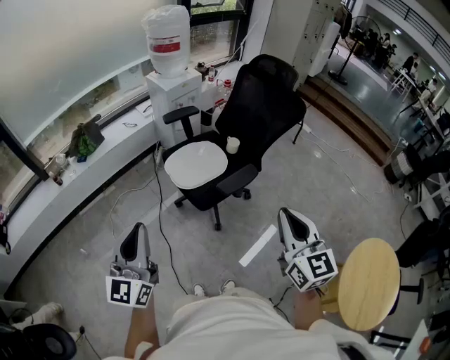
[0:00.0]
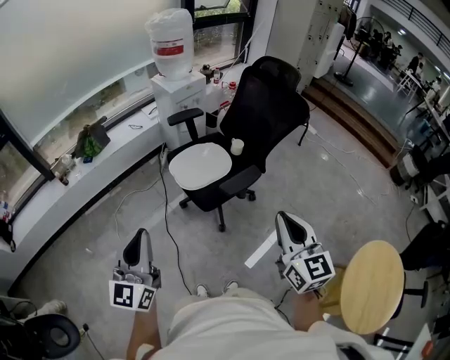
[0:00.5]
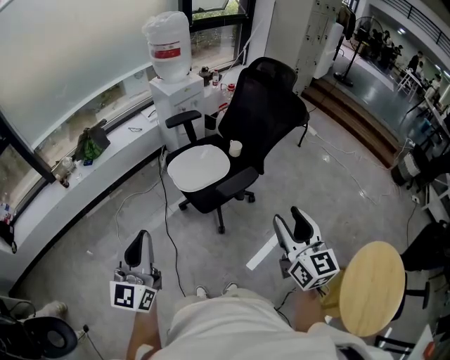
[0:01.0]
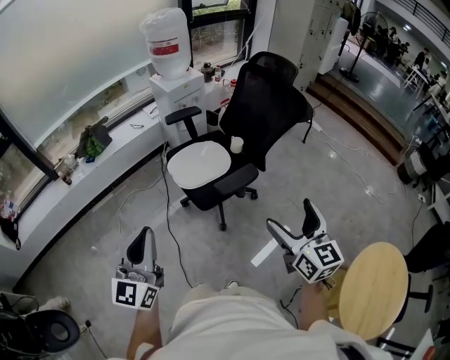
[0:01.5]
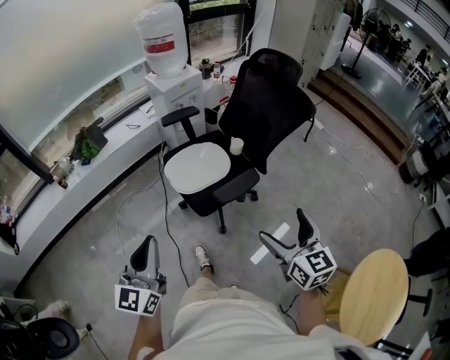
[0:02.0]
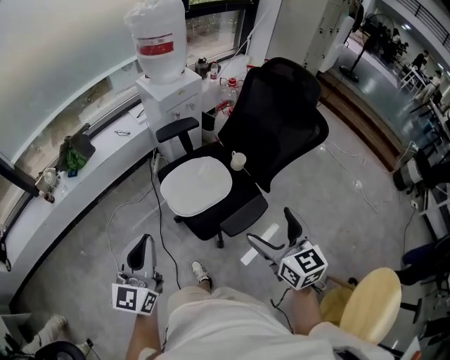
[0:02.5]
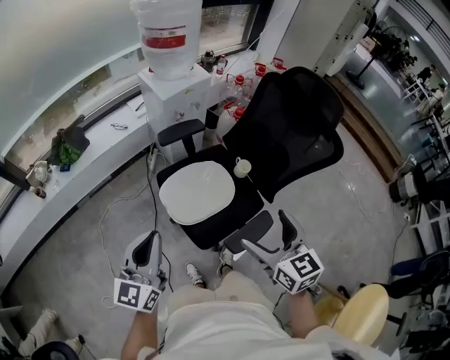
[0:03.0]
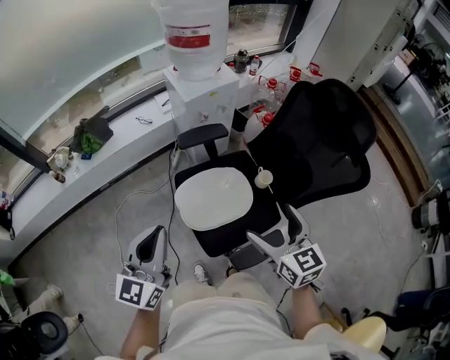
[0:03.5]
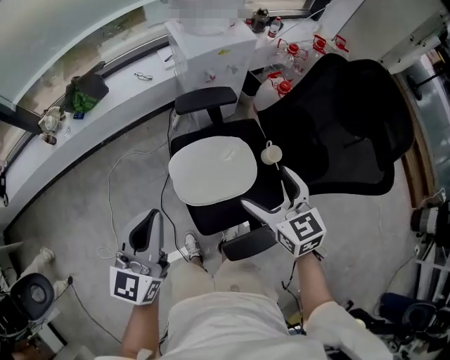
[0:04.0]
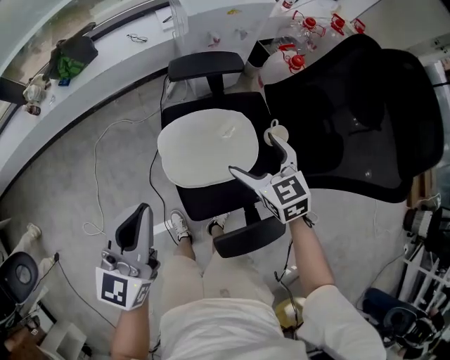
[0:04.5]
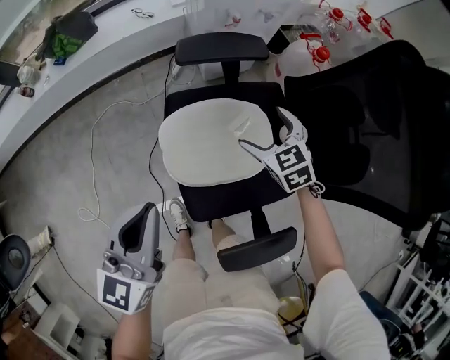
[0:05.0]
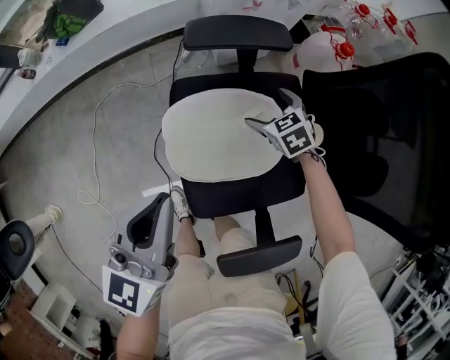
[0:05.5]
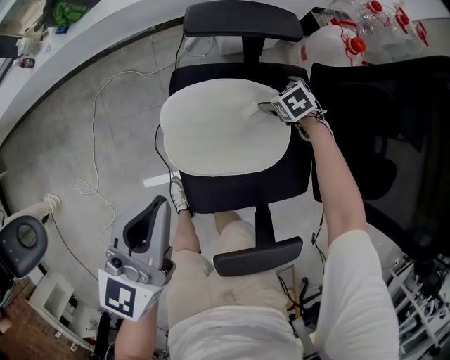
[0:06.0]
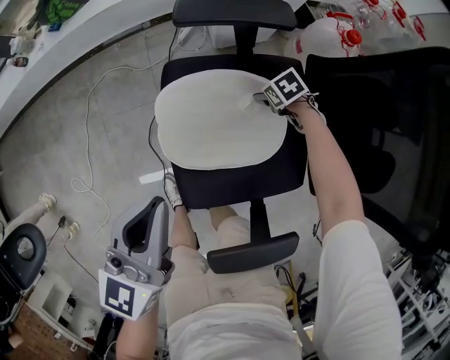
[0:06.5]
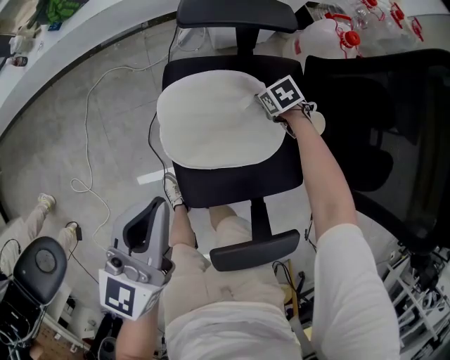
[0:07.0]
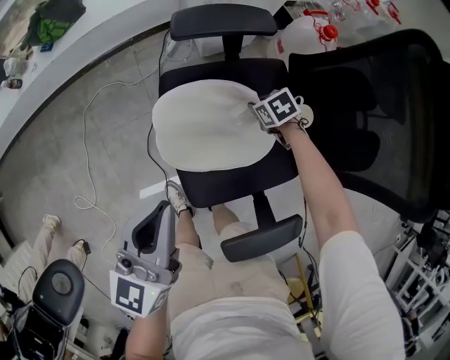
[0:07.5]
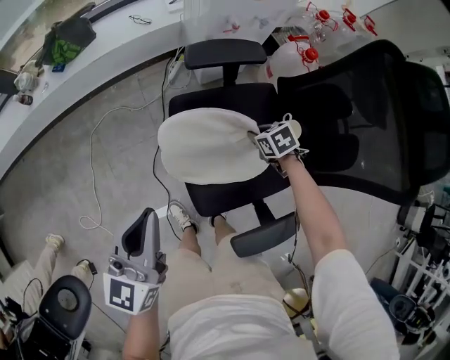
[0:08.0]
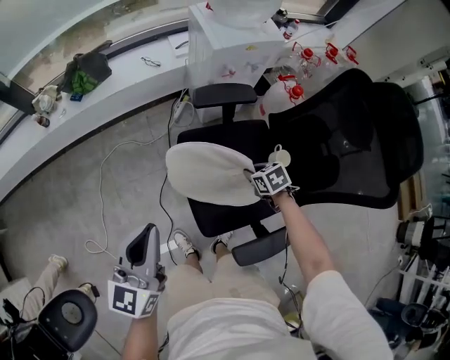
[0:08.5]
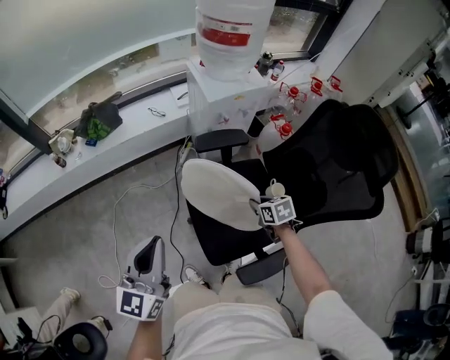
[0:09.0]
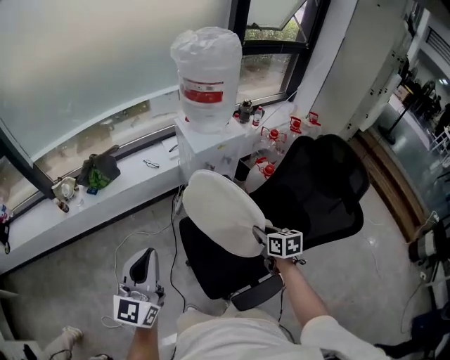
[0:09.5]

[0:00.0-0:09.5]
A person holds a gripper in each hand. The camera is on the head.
0:00.0 to 0:02.0: The left gripper shifts some 10 cm to the right; the right gripper heads downward, to the right and forward, covering approximately 10 cm, and opens.
0:02.0 to 0:04.0: The two grippers go roughly 40 cm forward. The right gripper swivels approximately 30 degrees.
0:04.0 to 0:05.5: The right gripper heads downward and forward, covering approximately 40 cm, and swivels about 30 degrees, while the left gripper is displaced downward by approximately 15 cm.
0:05.5 to 0:07.5: The right gripper heads downward, covering some 5 cm, changes its angle by approximately 20 degrees, and closes up.
0:07.5 to 0:09.5: The right gripper travels upward by approximately 40 cm, and tips its fingers upward by some 30 degrees. The left gripper moves upward and to the left, some 25 cm, and turns by approximately 20 degrees.

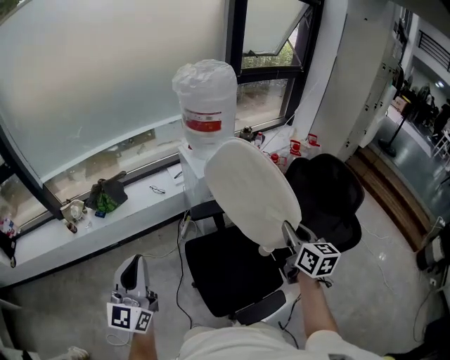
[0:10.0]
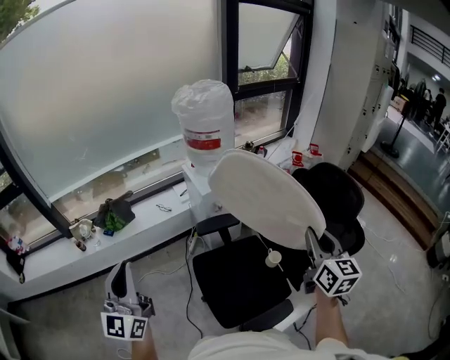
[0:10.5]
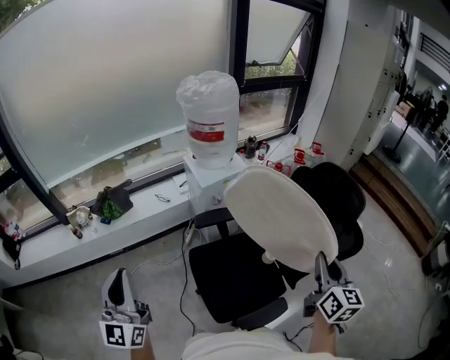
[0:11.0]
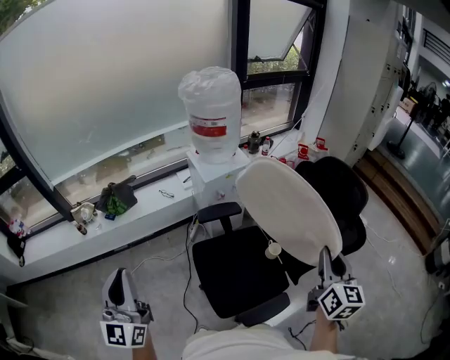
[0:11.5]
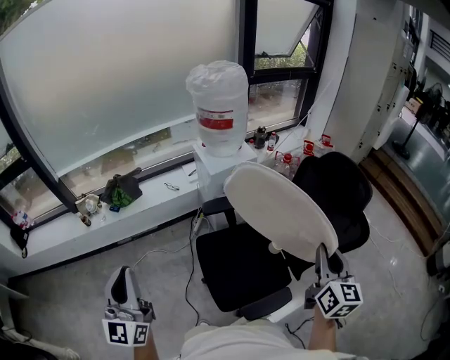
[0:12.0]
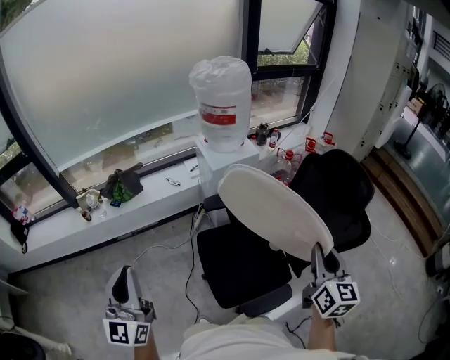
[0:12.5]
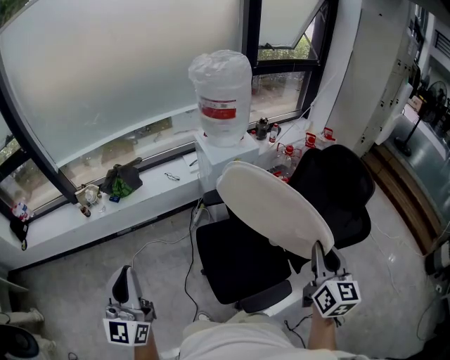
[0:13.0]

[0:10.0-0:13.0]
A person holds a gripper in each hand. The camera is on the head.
0:10.0 to 0:11.5: The right gripper is displaced backward, to the right and upward by some 15 cm; the left gripper travels backward by some 5 cm.
0:11.5 to 0:13.0: The grippers stay close to where they were, moving slightly.

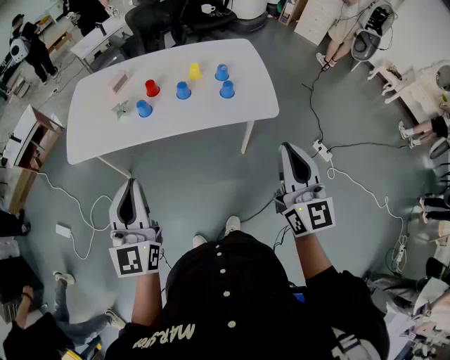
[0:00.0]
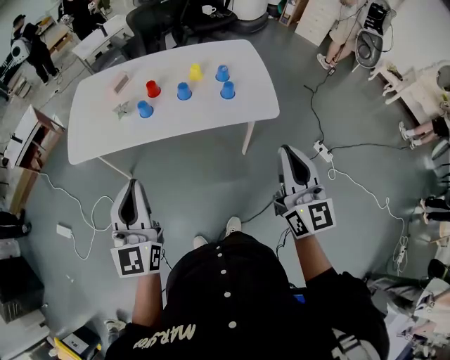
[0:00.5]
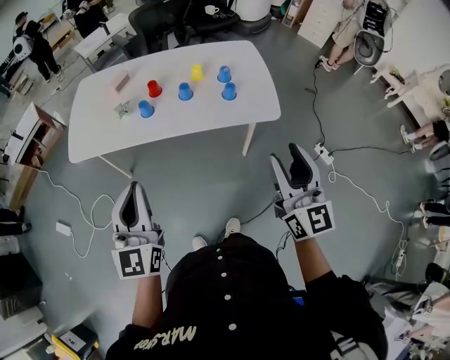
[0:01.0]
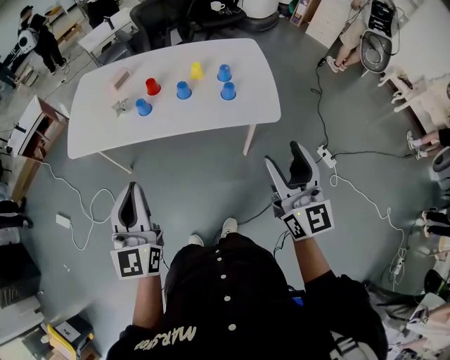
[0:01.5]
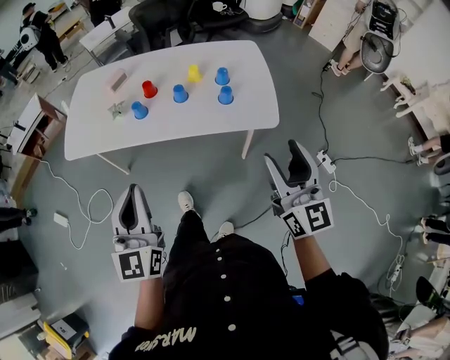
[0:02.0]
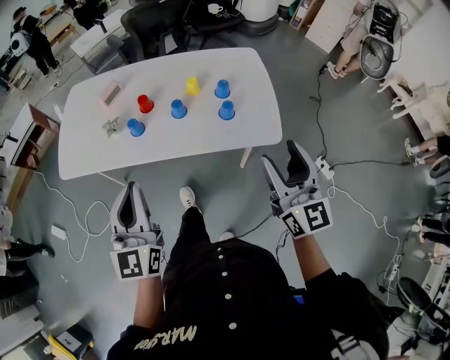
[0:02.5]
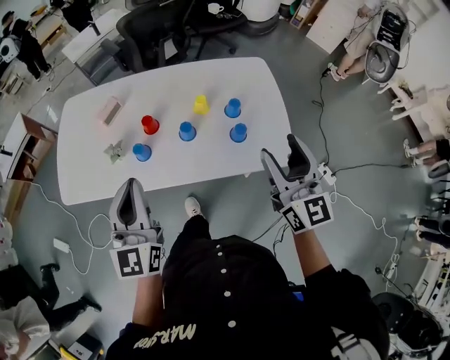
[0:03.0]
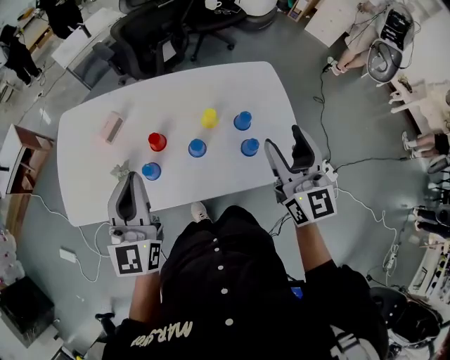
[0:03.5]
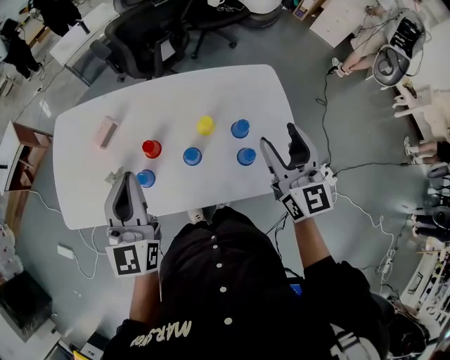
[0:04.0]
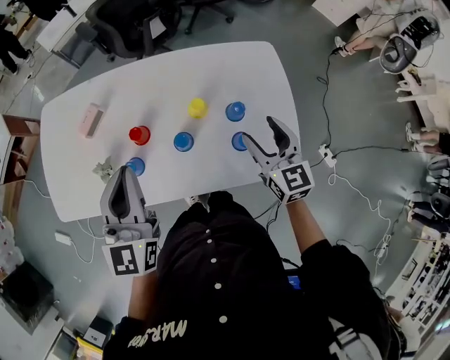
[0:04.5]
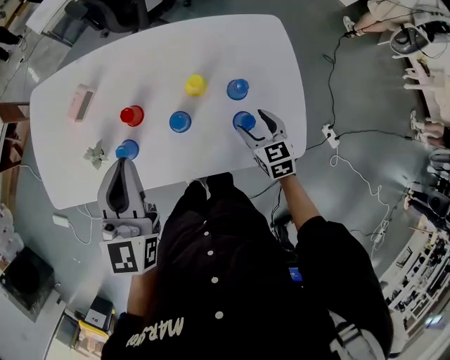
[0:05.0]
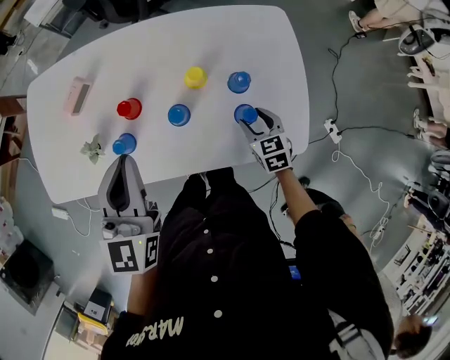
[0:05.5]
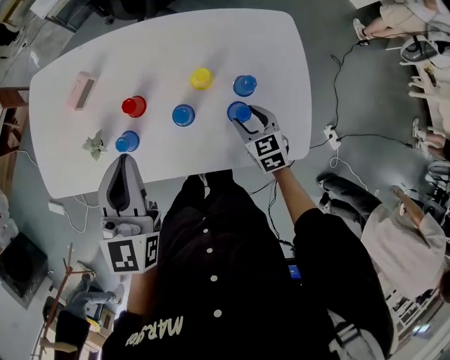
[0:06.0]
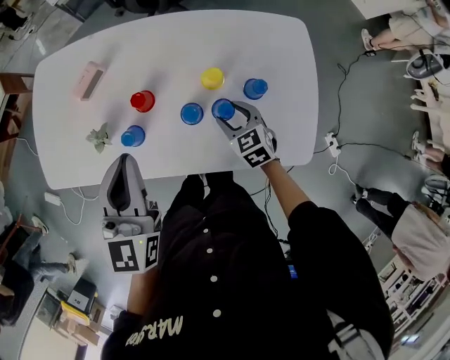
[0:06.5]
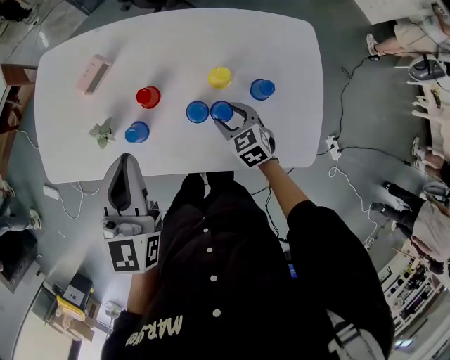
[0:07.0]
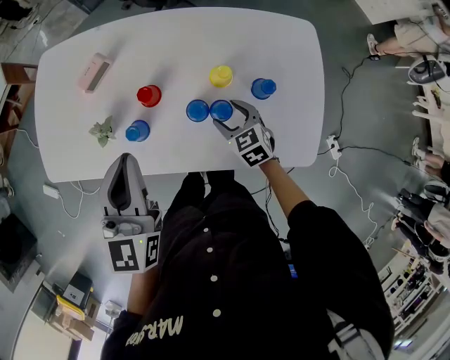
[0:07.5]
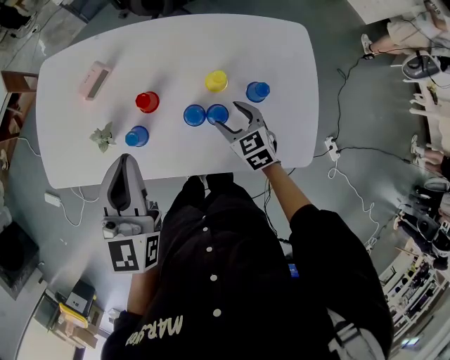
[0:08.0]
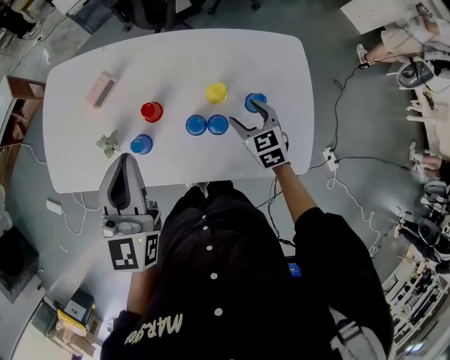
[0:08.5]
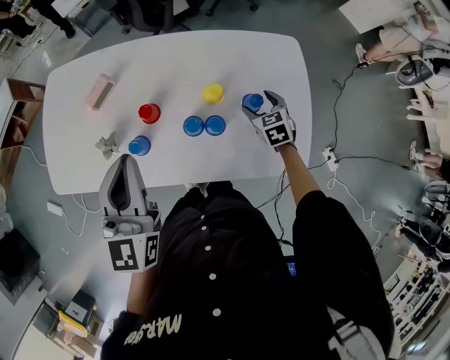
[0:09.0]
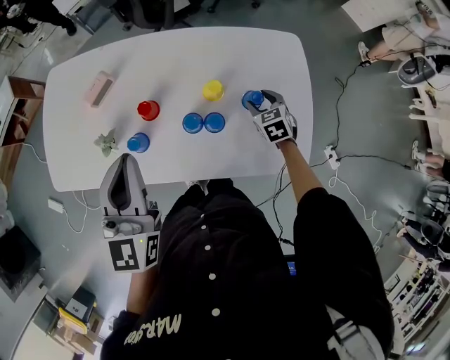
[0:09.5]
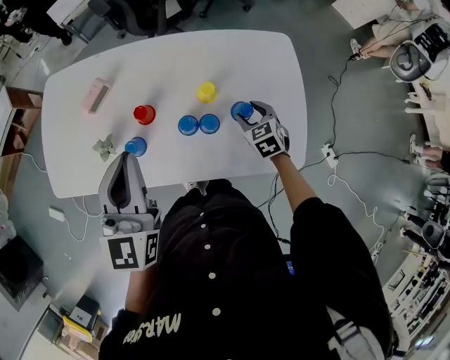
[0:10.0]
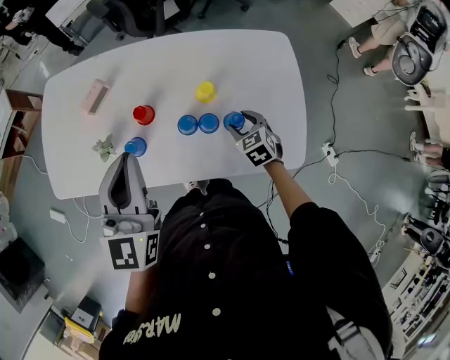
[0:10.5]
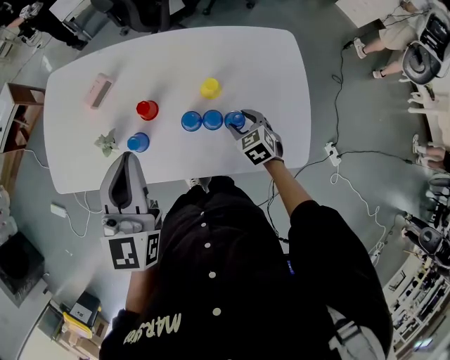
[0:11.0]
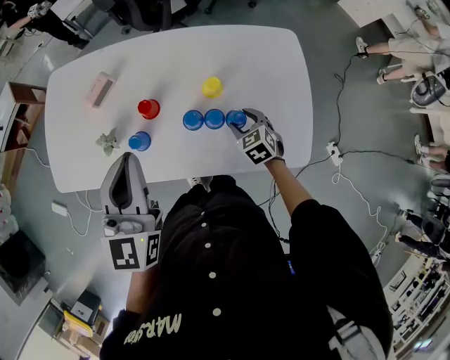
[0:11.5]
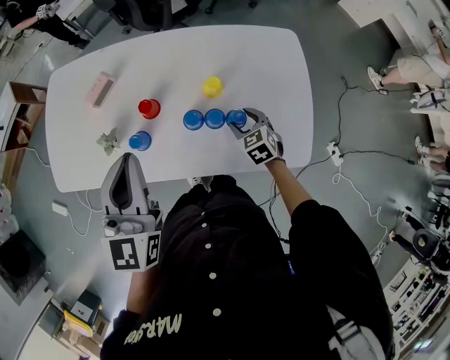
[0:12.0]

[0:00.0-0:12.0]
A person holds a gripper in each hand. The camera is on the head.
0:00.0 to 0:02.0: The two grippers go roughly 5 cm to the right. The right gripper opens its fingers.
0:02.0 to 0:04.0: The grippers both shift forward by approximately 40 cm.
0:04.0 to 0:06.0: The right gripper goes roughly 30 cm downward, and points its fingers roughly 40 degrees further downward; the left gripper goes about 5 cm downward.
0:06.0 to 0:08.0: The right gripper heads to the left, covering about 10 cm.
0:08.0 to 0:10.0: The right gripper heads to the right, covering roughly 10 cm.
0:10.0 to 0:12.0: The right gripper changes place by approximately 5 cm.

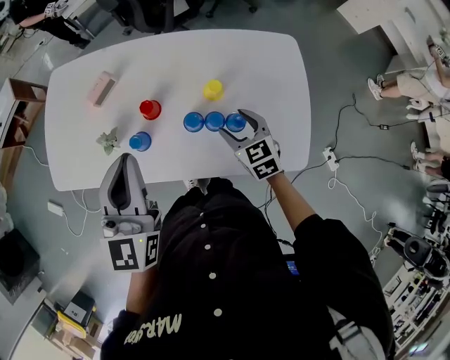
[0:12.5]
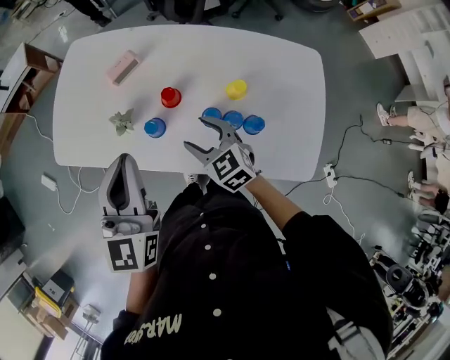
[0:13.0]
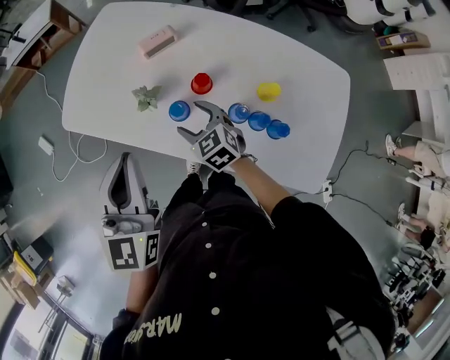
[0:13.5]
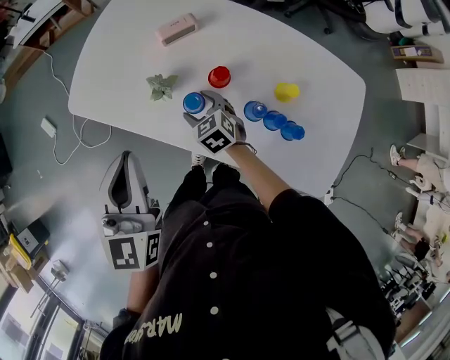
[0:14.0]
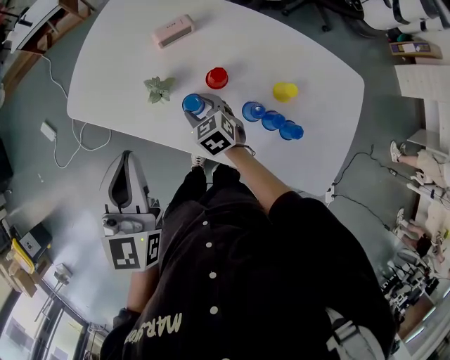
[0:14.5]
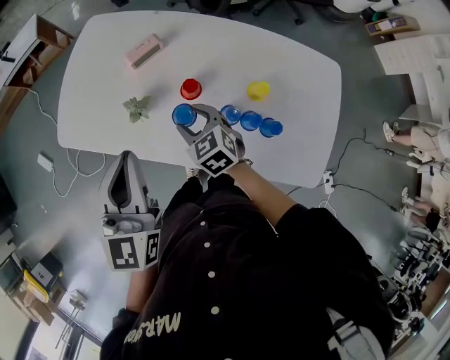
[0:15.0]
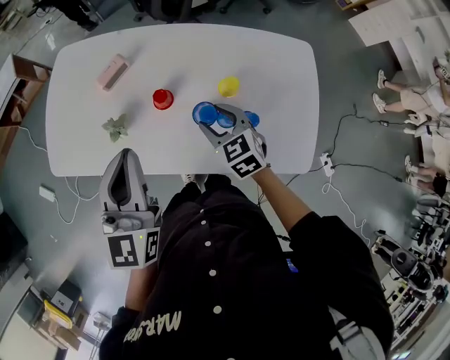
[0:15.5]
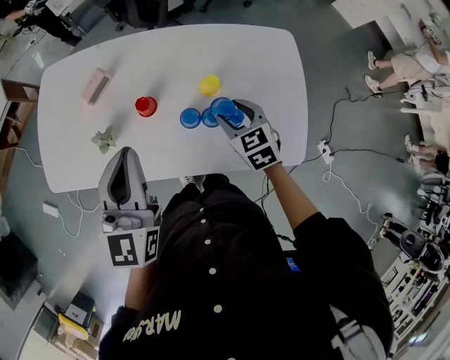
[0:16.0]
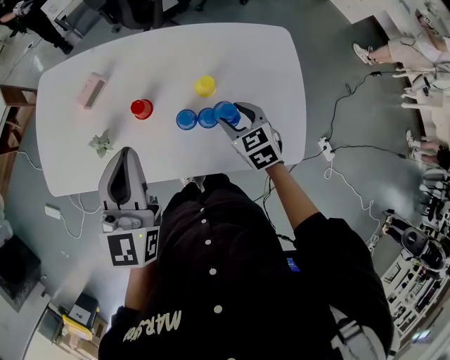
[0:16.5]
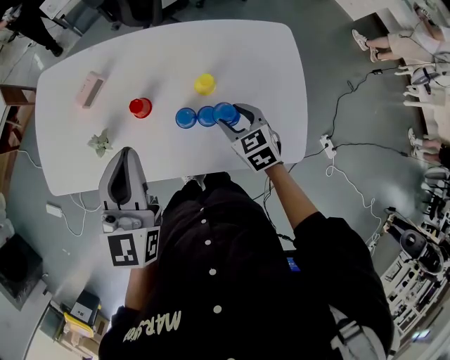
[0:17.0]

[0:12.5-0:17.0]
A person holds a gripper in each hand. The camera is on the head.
0:12.5 to 0:14.5: The left gripper shifts by roughly 15 cm, and turns by some 20 degrees. The right gripper ends up about 30 cm from where it was, and swivels some 30 degrees.
0:14.5 to 0:17.0: The left gripper moves about 20 cm, and swivels approximately 30 degrees. Meanwhile the right gripper moves approximately 30 cm, and turns by some 30 degrees.
